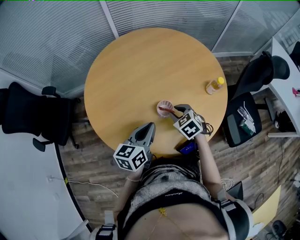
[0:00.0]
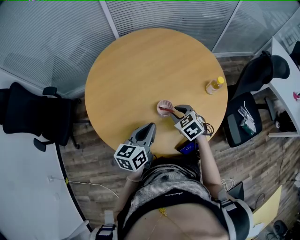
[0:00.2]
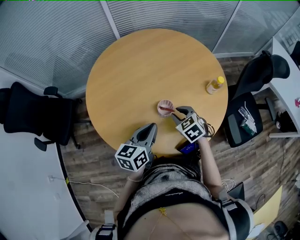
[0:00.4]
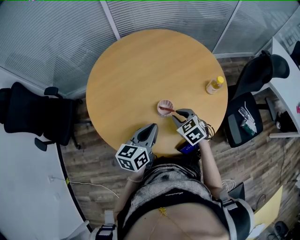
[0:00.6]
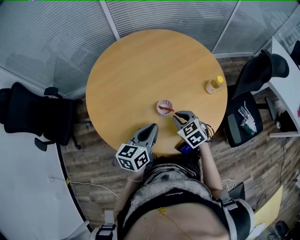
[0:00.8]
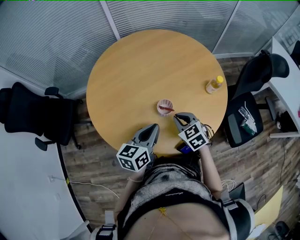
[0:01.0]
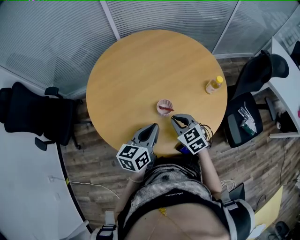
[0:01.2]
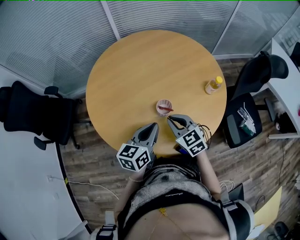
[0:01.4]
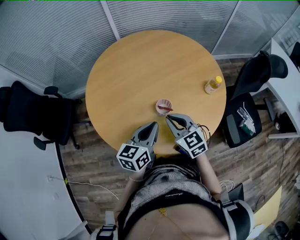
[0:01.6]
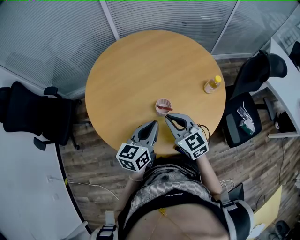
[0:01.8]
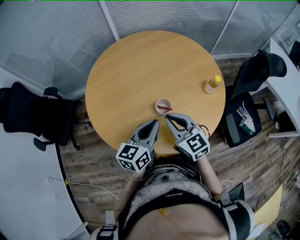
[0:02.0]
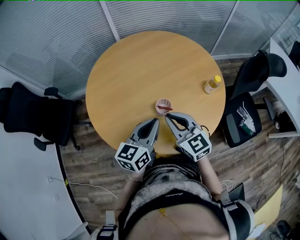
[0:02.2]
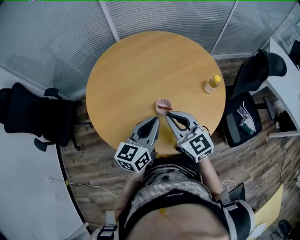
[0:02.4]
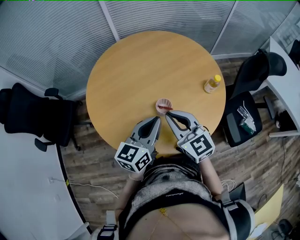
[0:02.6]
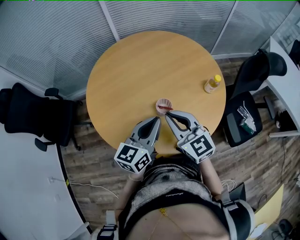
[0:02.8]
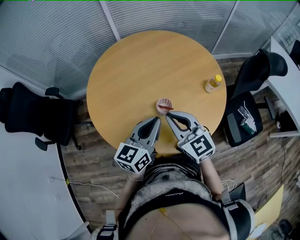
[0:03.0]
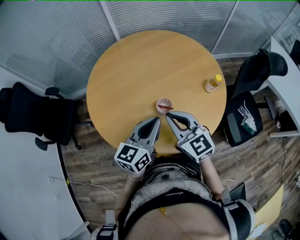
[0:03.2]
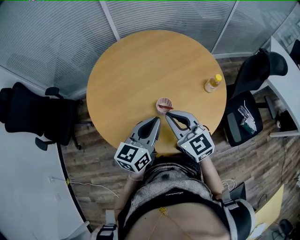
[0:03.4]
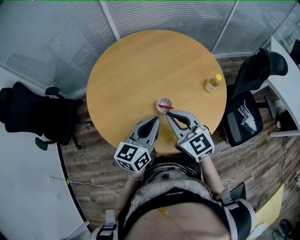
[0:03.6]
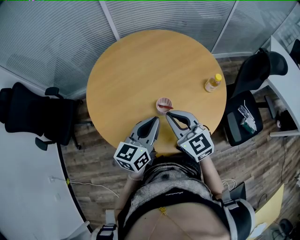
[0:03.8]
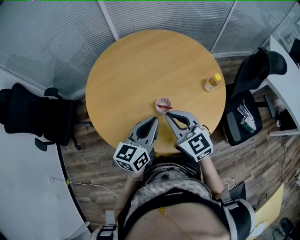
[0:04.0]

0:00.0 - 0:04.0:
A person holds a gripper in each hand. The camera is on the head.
0:00.0 - 0:01.4: The right gripper heads upward and backward, covering approximately 10 cm, turns by some 20 degrees, and closes up.
0:01.4 - 0:02.6: The left gripper shifts roughly 5 cm upward. The right gripper moves upward, some 10 cm.
0:02.6 - 0:04.0: There are only small adjustments of the grippers.

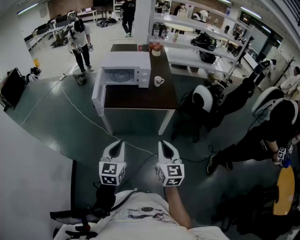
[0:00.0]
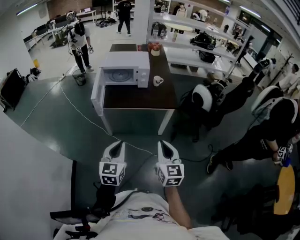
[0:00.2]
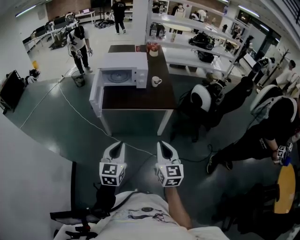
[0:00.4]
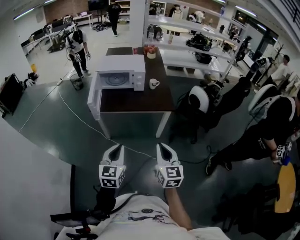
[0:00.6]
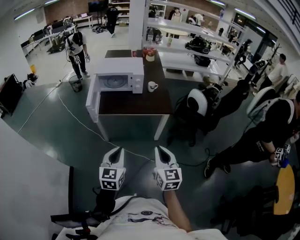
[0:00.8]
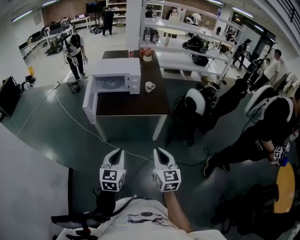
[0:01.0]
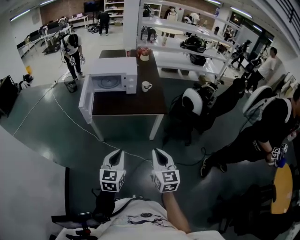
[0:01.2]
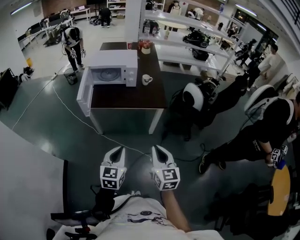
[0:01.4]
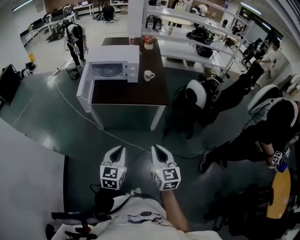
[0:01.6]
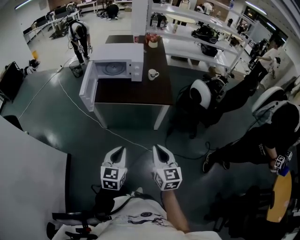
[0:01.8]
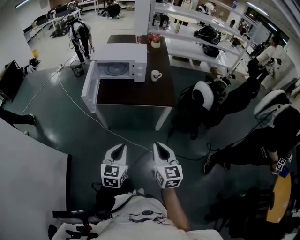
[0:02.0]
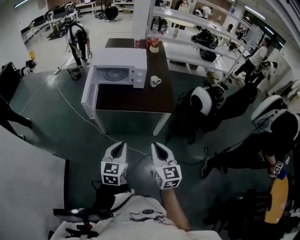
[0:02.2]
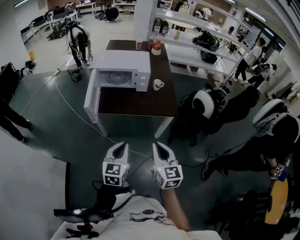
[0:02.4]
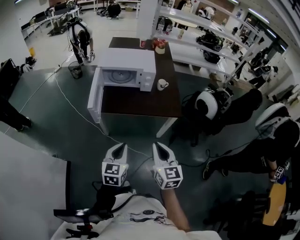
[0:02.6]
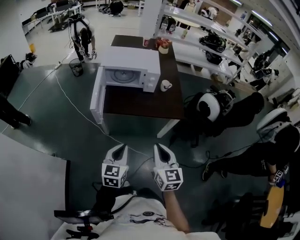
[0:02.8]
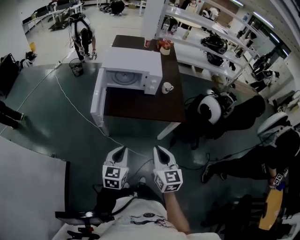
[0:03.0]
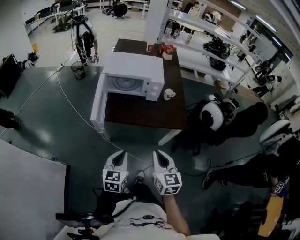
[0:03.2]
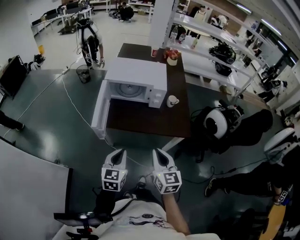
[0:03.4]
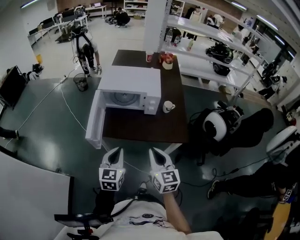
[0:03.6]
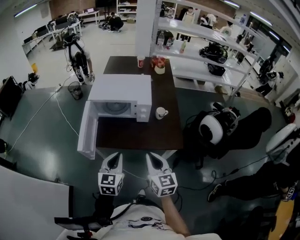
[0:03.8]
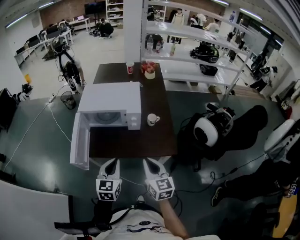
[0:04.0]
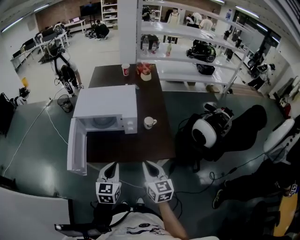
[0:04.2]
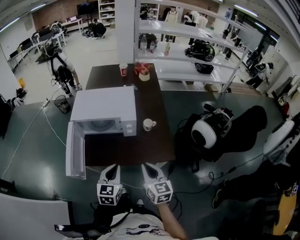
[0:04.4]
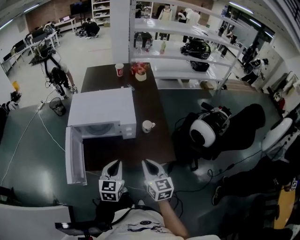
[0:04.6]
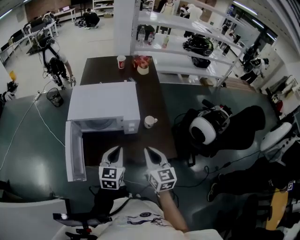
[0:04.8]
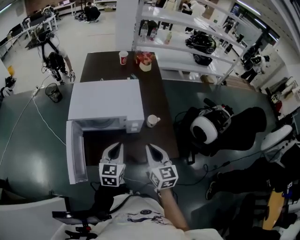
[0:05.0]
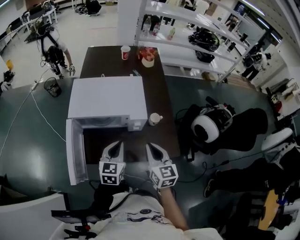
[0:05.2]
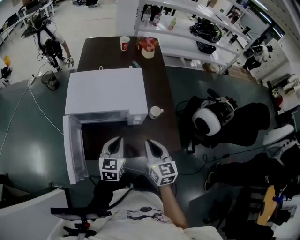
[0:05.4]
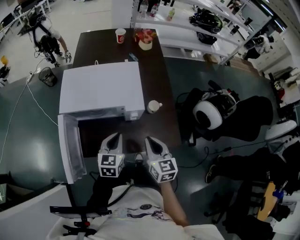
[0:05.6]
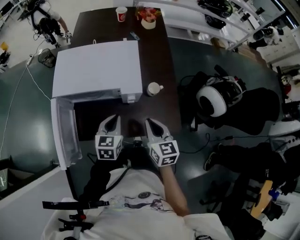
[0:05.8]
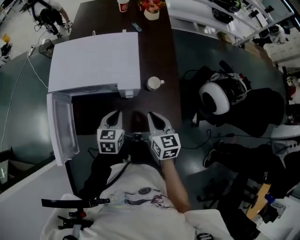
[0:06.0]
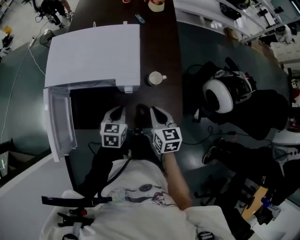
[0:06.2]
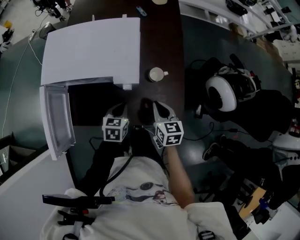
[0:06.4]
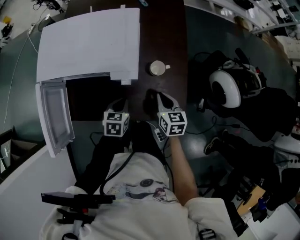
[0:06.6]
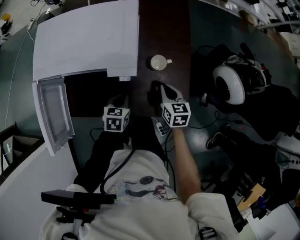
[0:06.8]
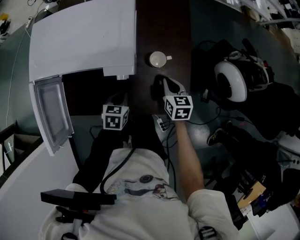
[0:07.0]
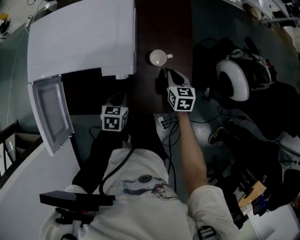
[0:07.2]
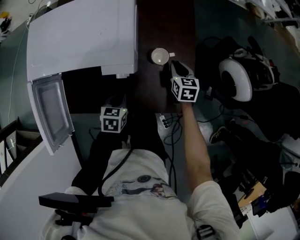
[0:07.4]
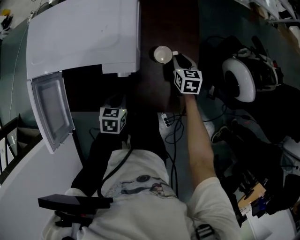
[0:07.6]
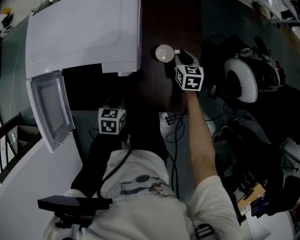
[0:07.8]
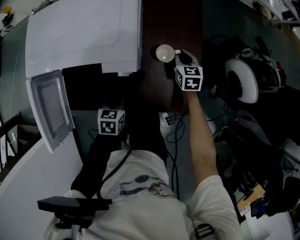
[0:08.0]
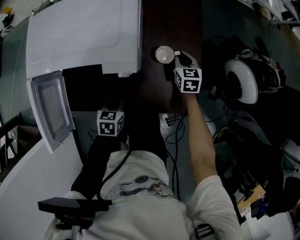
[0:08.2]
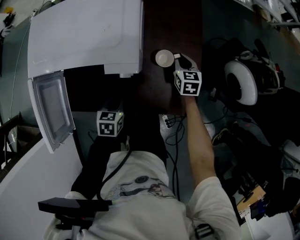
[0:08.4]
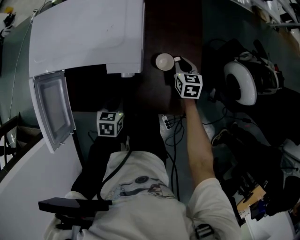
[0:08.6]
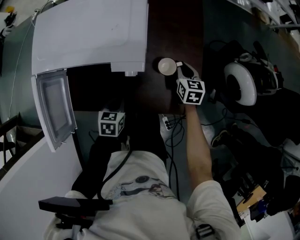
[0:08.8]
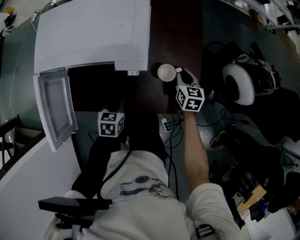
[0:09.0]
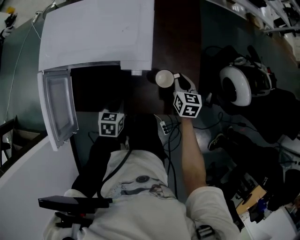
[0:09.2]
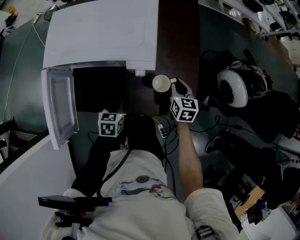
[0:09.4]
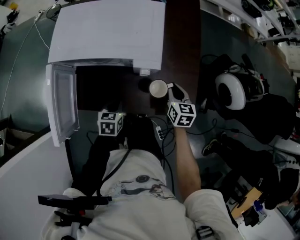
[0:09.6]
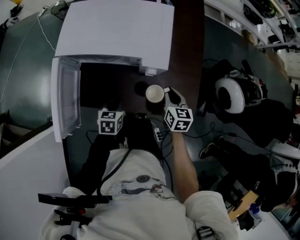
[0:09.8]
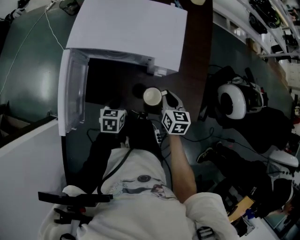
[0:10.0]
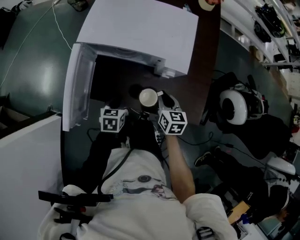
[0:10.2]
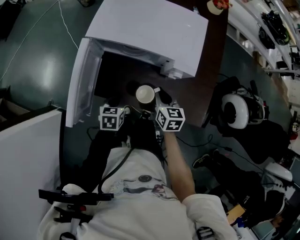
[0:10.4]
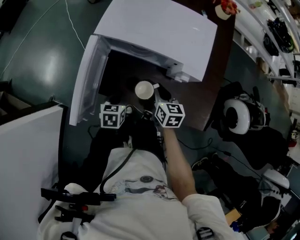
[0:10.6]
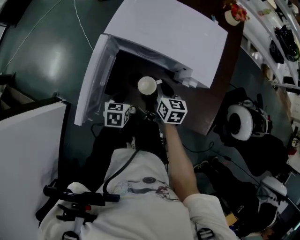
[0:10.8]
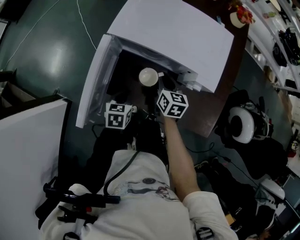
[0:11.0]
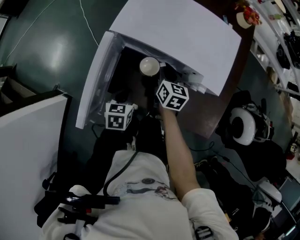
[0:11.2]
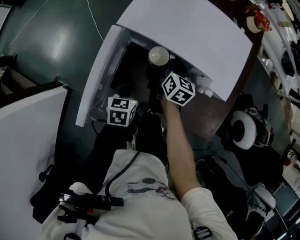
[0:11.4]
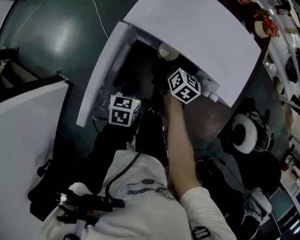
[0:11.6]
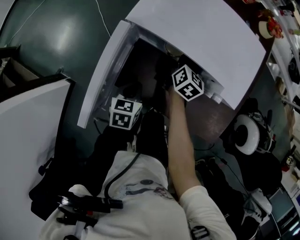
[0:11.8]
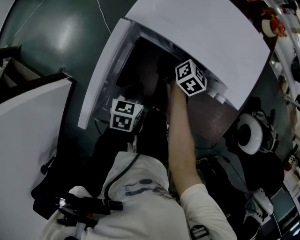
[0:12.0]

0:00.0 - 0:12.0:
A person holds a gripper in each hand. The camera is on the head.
0:00.0 - 0:01.6: The right gripper goes roughly 5 cm to the right; the left gripper heads to the right, covering approximately 10 cm.
0:01.6 - 0:03.0: The grippers both shift forward and to the left by roughly 15 cm.
0:03.0 - 0:04.4: The right gripper goes about 20 cm forward. Meanwhile the left gripper shifts roughly 20 cm forward and to the right.
0:04.4 - 0:06.0: The grippers both shift forward and downward by about 15 cm.
0:06.0 - 0:07.6: The right gripper moves downward, forward and to the right, some 25 cm, and opens. Meanwhile the left gripper goes roughly 10 cm downward, and turns by roughly 20 degrees.
0:07.6 - 0:09.0: The right gripper is displaced backward by some 5 cm.
0:09.0 - 0:10.4: The right gripper is displaced to the left and backward by about 25 cm. Meanwhile the left gripper heads to the left, covering approximately 10 cm.
0:10.4 - 0:12.0: The right gripper is displaced forward by some 20 cm, and rotates about 30 degrees; the left gripper changes place by about 5 cm.

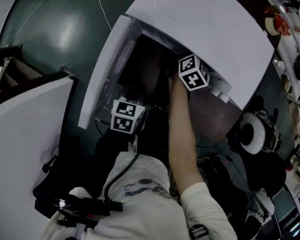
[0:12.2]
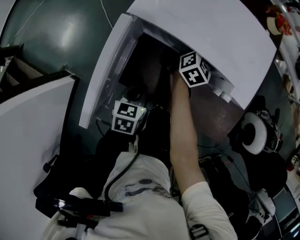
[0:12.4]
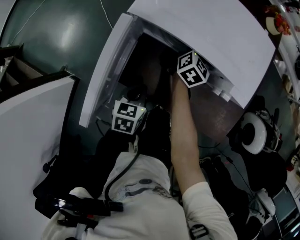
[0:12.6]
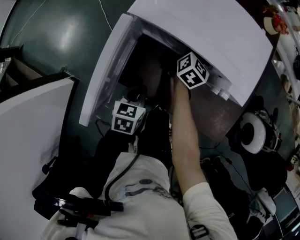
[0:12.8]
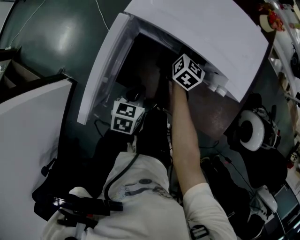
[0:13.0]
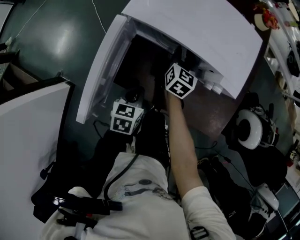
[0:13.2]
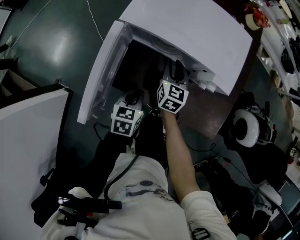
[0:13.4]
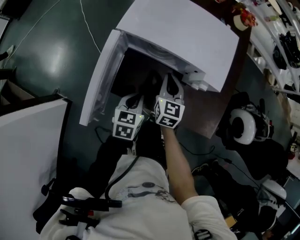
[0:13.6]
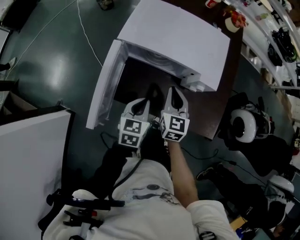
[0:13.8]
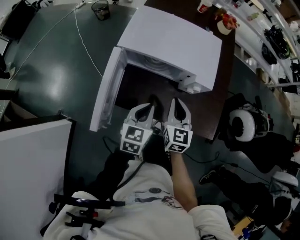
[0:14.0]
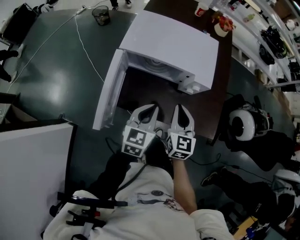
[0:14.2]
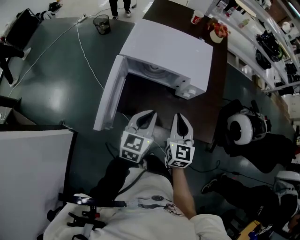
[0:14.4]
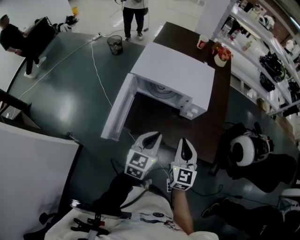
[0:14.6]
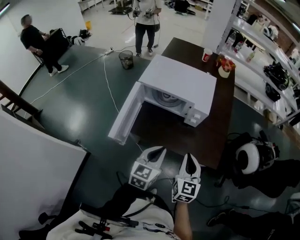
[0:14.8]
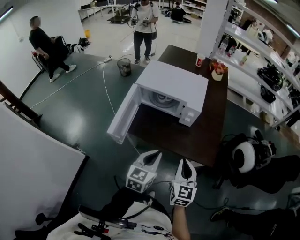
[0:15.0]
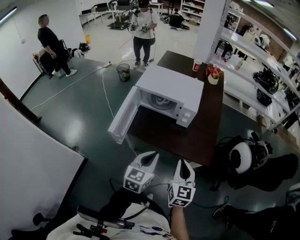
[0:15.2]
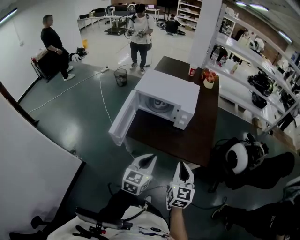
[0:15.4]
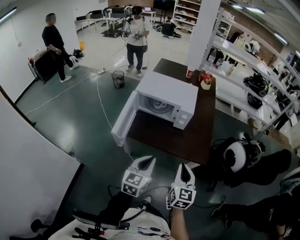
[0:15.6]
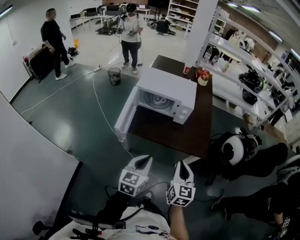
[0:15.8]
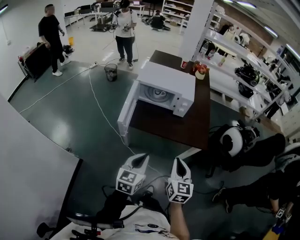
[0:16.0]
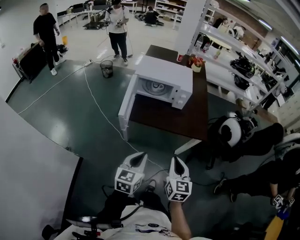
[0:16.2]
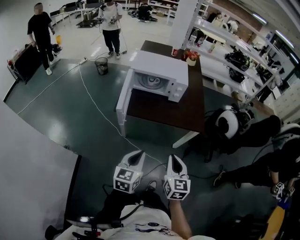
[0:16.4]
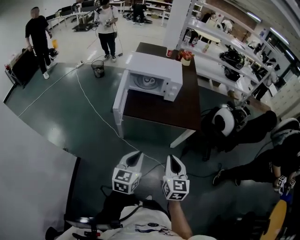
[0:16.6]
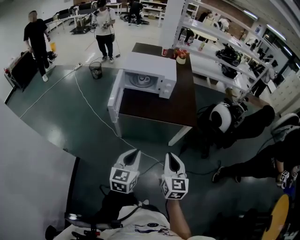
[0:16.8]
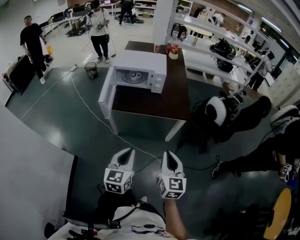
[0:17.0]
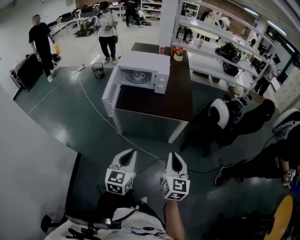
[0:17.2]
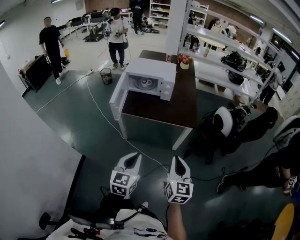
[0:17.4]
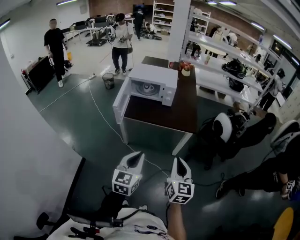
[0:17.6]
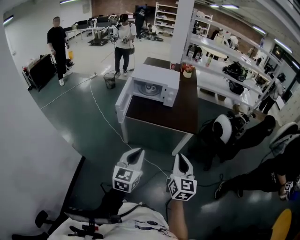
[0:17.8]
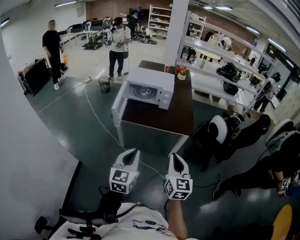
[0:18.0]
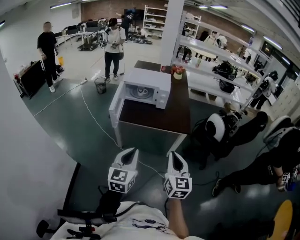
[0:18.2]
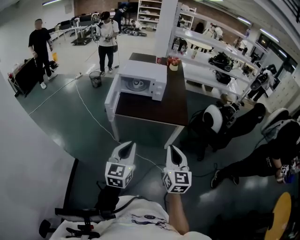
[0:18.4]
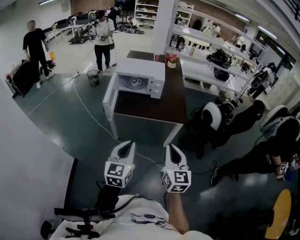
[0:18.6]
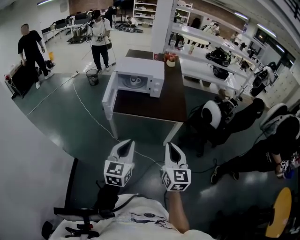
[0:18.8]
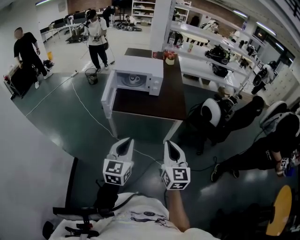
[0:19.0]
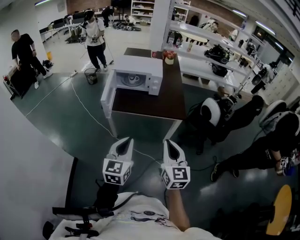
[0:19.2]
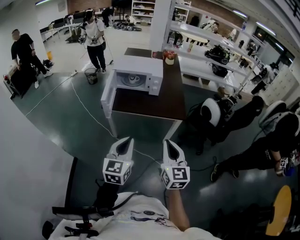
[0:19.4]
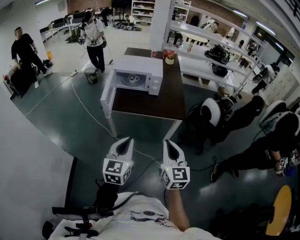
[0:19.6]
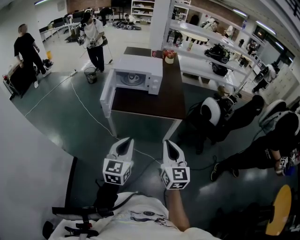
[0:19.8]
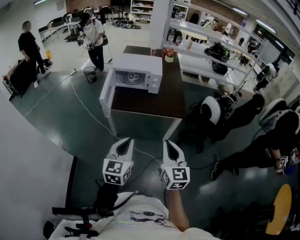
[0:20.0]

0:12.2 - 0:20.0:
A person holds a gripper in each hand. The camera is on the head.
0:12.2 - 0:13.8: The left gripper moves upward and to the right, some 10 cm. Meanwhile the right gripper goes roughly 20 cm backward and upward, changes its angle by about 30 degrees, and opens and closes again.
0:13.8 - 0:15.4: The left gripper moves backward, upward and to the right, some 25 cm; the right gripper travels backward, to the right and upward by some 30 cm.
0:15.4 - 0:16.8: The grippers both shift backward by roughly 20 cm.
0:16.8 - 0:18.4: Both grippers travel together upward, roughly 5 cm.
0:18.4 - 0:20.0: The grippers stay close to where they were, moving slightly.
